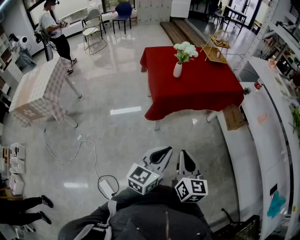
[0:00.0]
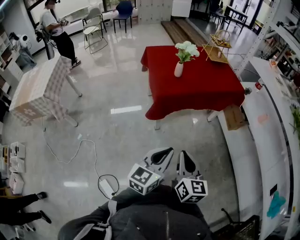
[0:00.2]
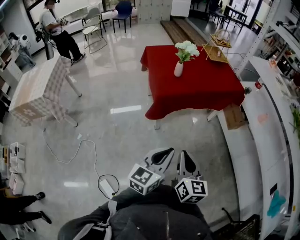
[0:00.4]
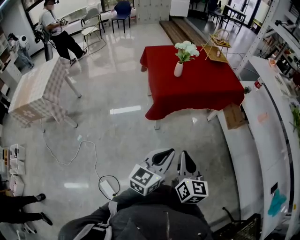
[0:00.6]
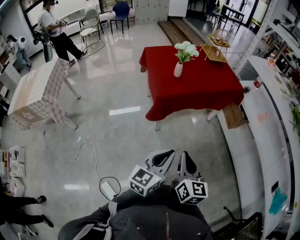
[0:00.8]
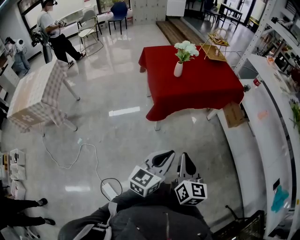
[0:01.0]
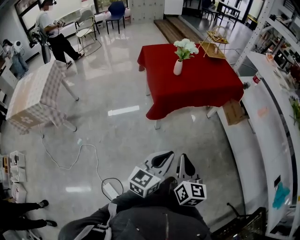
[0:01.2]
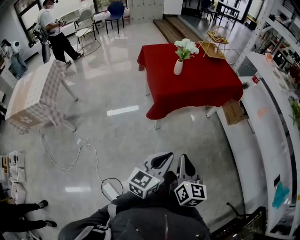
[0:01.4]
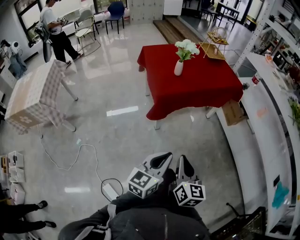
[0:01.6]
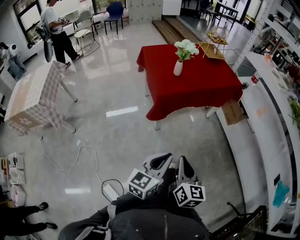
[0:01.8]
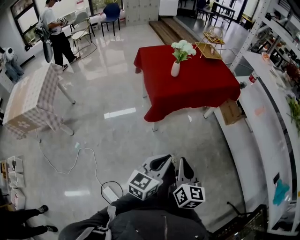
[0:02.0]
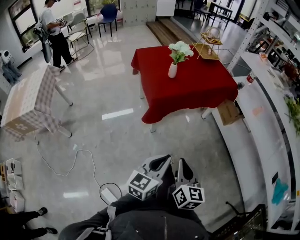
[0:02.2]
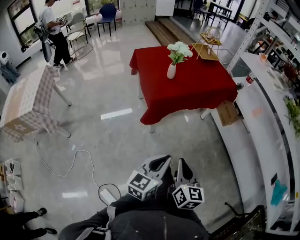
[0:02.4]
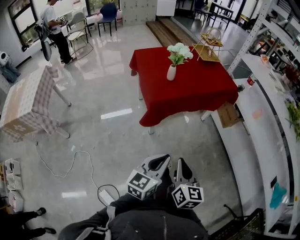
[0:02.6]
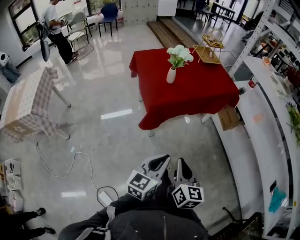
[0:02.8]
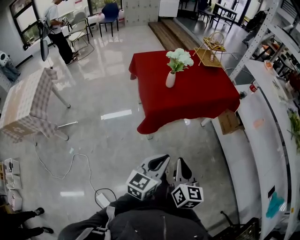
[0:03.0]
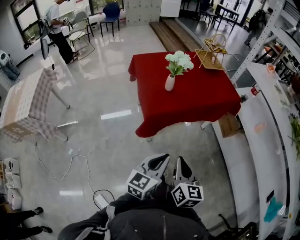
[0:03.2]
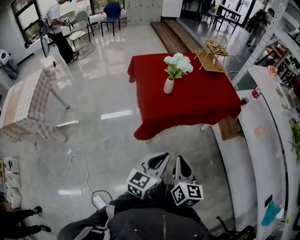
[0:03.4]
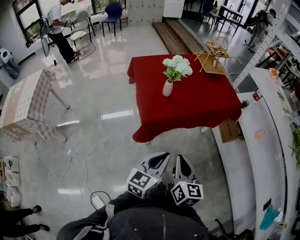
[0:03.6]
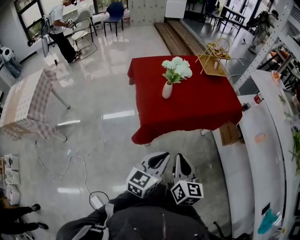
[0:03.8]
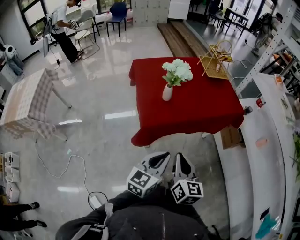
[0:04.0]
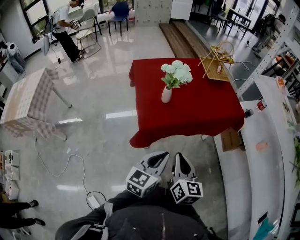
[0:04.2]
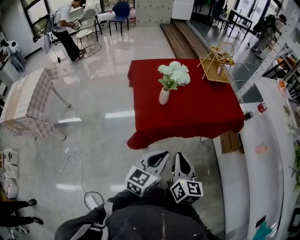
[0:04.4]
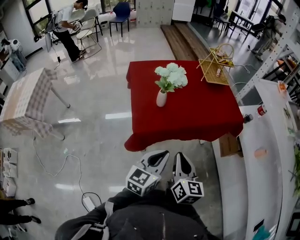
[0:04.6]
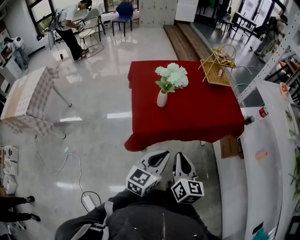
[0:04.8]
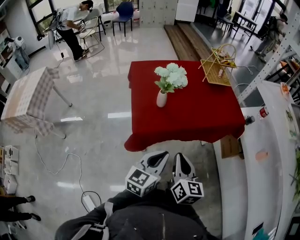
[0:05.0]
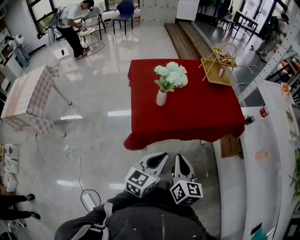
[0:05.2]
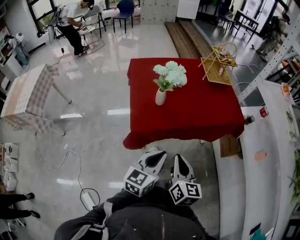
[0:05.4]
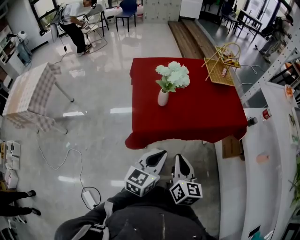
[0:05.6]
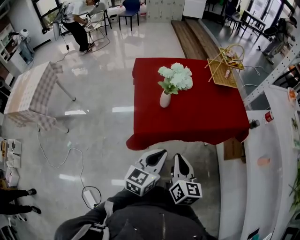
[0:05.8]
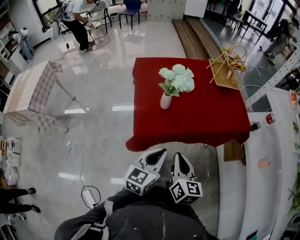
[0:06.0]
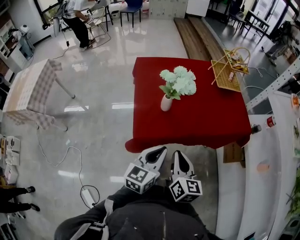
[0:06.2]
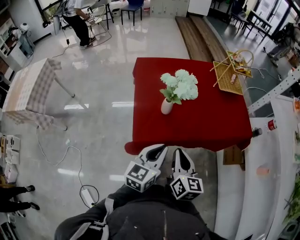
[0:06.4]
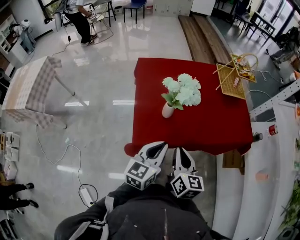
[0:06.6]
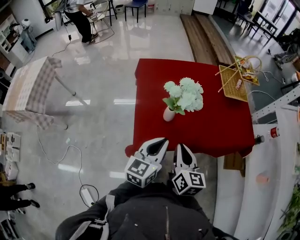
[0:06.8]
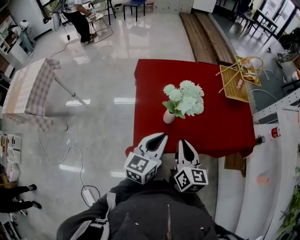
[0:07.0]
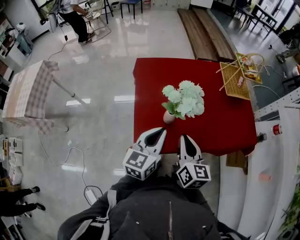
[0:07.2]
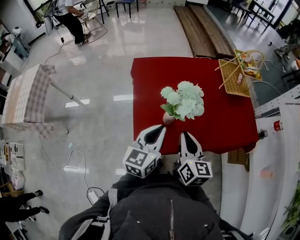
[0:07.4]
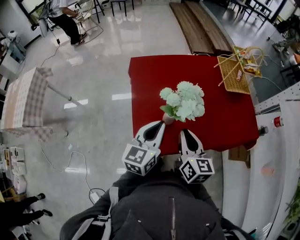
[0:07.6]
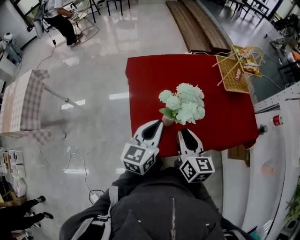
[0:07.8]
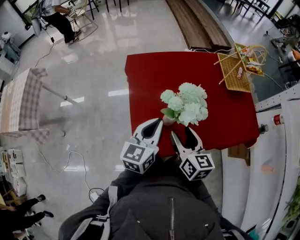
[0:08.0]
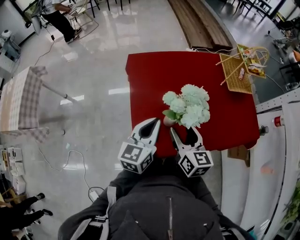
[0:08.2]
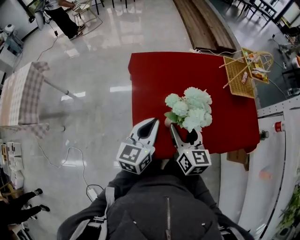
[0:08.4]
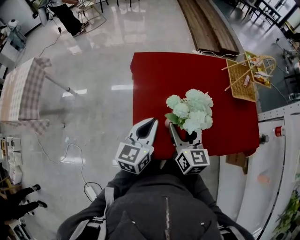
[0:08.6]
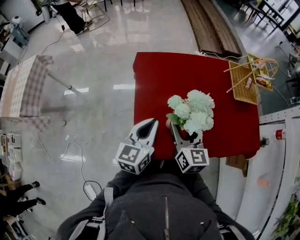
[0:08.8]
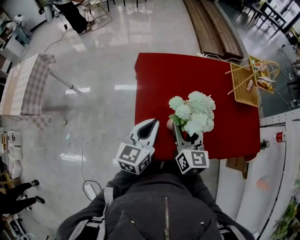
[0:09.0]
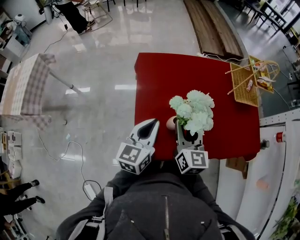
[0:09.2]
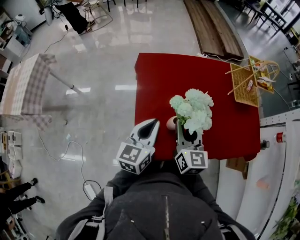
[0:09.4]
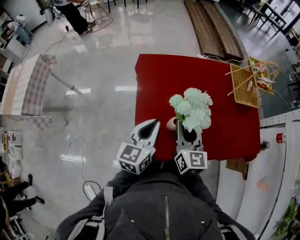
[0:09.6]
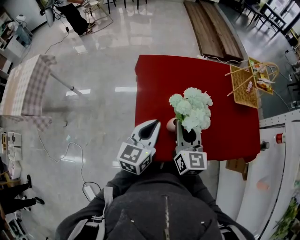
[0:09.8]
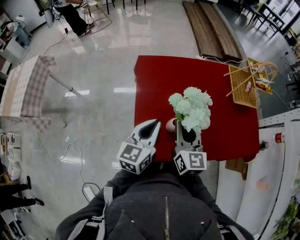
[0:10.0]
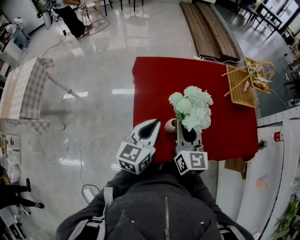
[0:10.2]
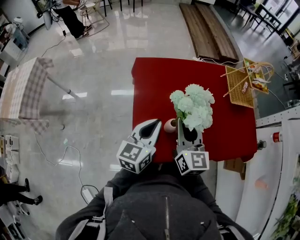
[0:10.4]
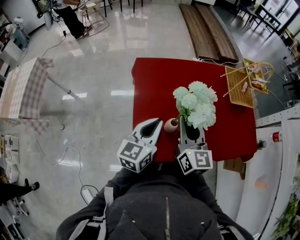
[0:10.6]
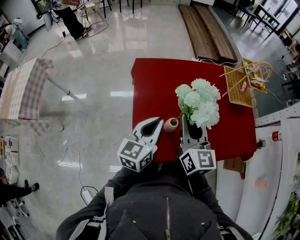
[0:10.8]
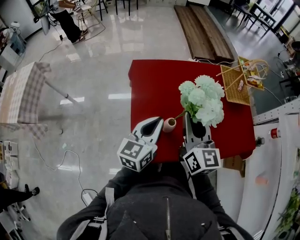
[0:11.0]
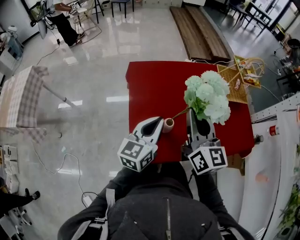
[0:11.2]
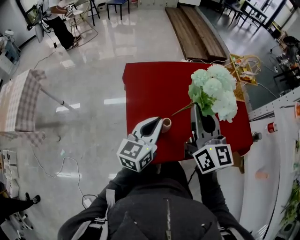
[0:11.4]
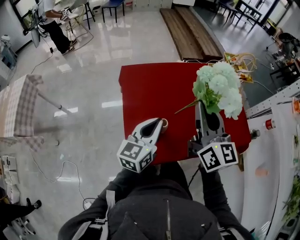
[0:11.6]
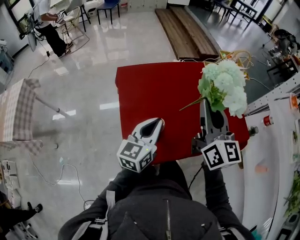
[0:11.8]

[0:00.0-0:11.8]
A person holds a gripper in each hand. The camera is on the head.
0:00.0 to 0:01.4: The grippers move only a little.
0:01.4 to 0:03.0: The grippers both shift forward by about 10 cm.
0:03.0 to 0:04.4: Both grippers travel together forward, approximately 20 cm.
0:04.4 to 0:06.0: Both grippers travel together forward, about 5 cm.
0:06.0 to 0:07.4: Both grippers move forward, roughly 20 cm.
0:07.4 to 0:08.8: The left gripper goes some 10 cm forward and to the left; the right gripper heads forward, covering roughly 10 cm, and opens up.
0:08.8 to 0:10.4: The right gripper closes.
0:10.4 to 0:11.8: The right gripper shifts some 15 cm upward and to the right. Meanwhile the left gripper moves roughly 5 cm.

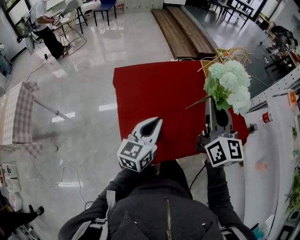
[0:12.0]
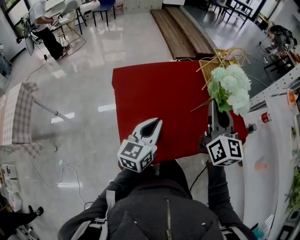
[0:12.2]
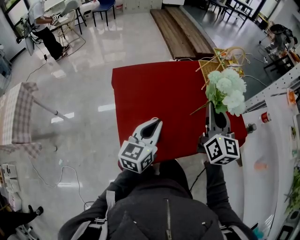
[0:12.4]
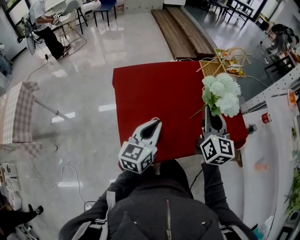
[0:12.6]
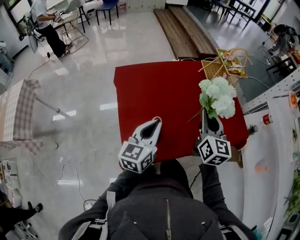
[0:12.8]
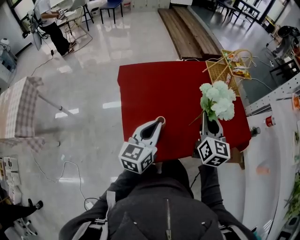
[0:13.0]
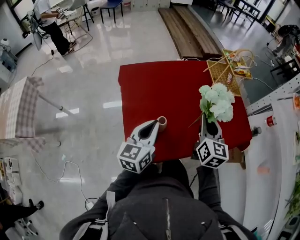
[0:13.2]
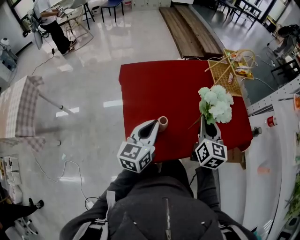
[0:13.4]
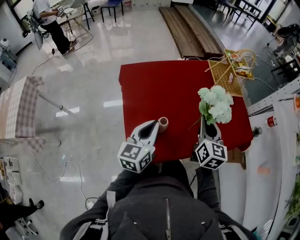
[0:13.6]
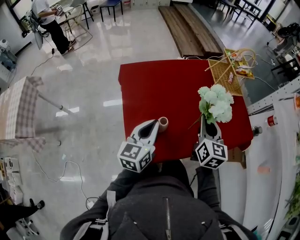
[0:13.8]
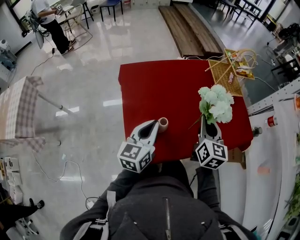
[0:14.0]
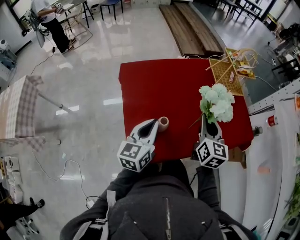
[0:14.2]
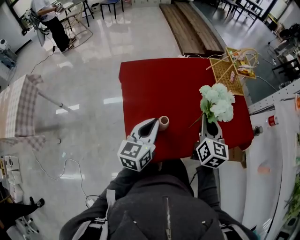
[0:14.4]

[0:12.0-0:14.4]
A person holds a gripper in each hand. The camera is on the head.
0:12.0 to 0:13.2: The right gripper heads downward, covering about 15 cm.
0:13.2 to 0:14.4: The grippers make only small movements.

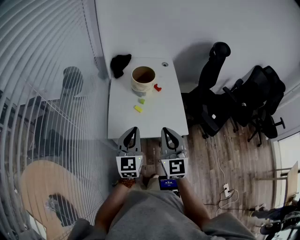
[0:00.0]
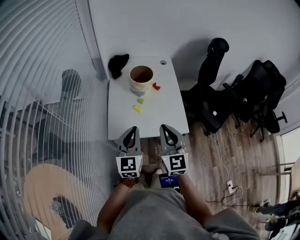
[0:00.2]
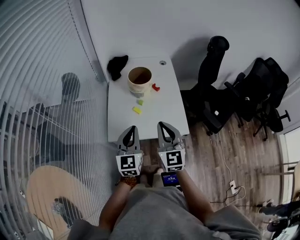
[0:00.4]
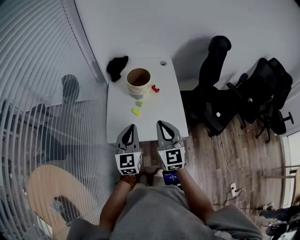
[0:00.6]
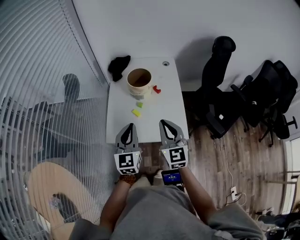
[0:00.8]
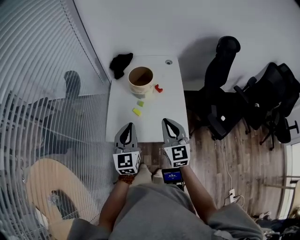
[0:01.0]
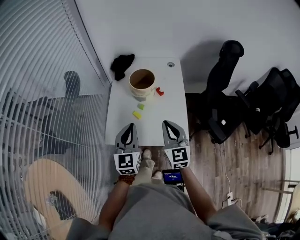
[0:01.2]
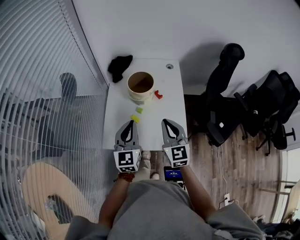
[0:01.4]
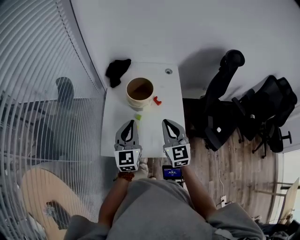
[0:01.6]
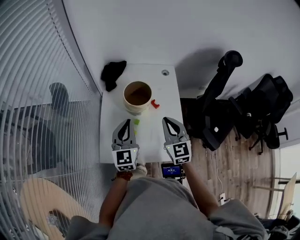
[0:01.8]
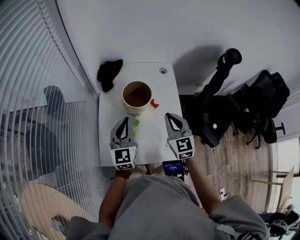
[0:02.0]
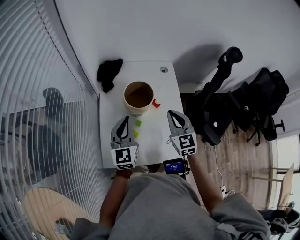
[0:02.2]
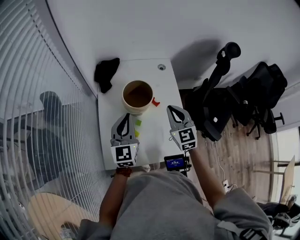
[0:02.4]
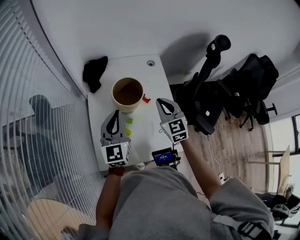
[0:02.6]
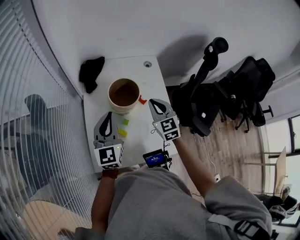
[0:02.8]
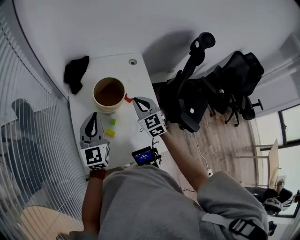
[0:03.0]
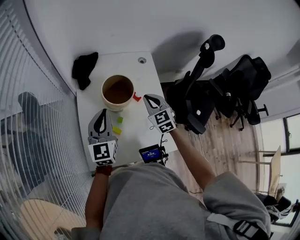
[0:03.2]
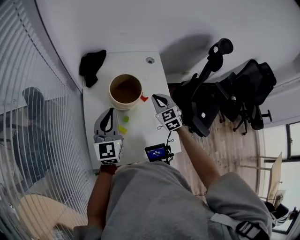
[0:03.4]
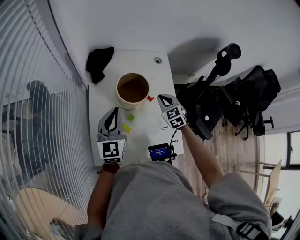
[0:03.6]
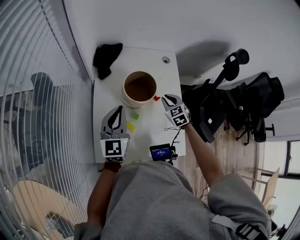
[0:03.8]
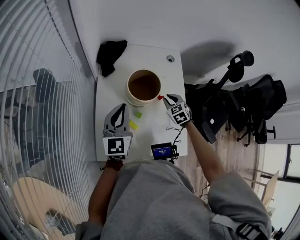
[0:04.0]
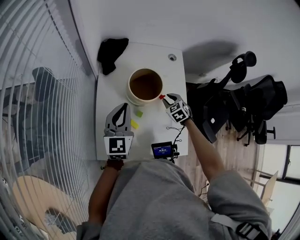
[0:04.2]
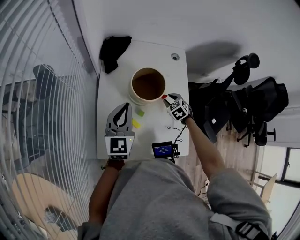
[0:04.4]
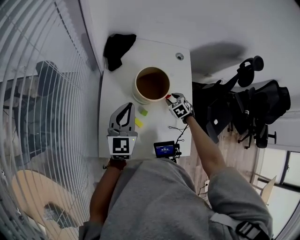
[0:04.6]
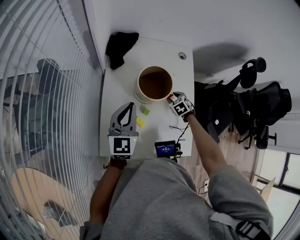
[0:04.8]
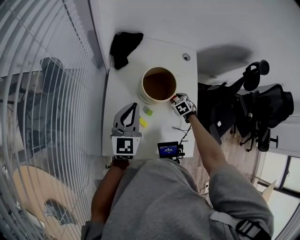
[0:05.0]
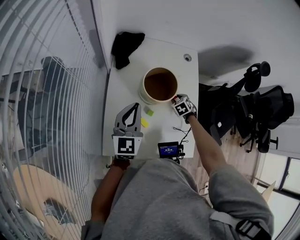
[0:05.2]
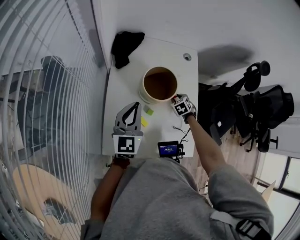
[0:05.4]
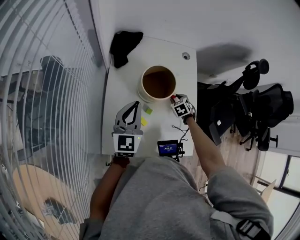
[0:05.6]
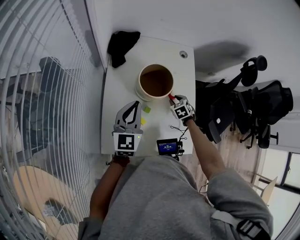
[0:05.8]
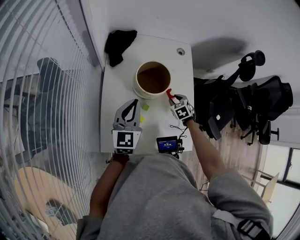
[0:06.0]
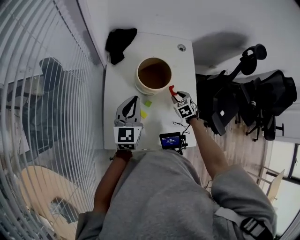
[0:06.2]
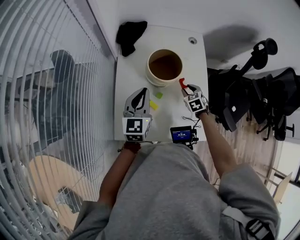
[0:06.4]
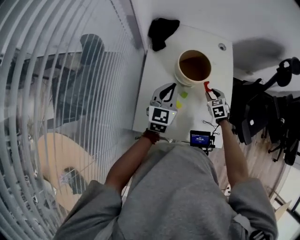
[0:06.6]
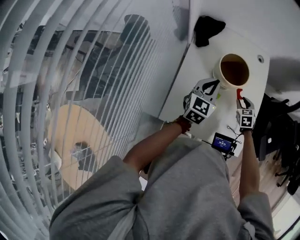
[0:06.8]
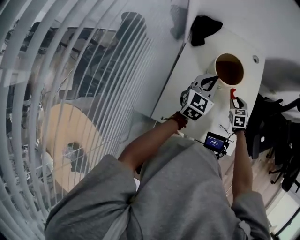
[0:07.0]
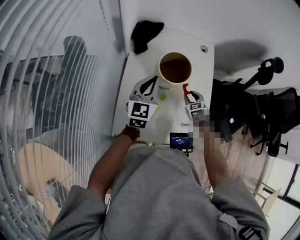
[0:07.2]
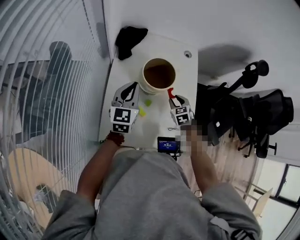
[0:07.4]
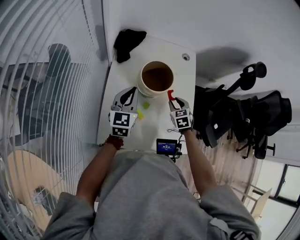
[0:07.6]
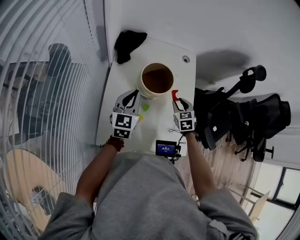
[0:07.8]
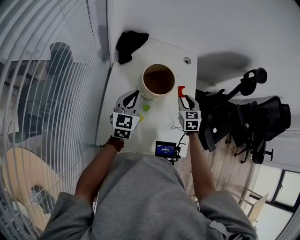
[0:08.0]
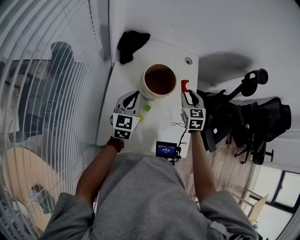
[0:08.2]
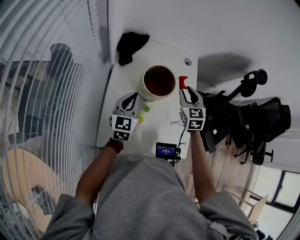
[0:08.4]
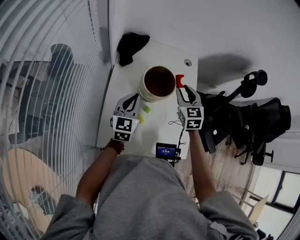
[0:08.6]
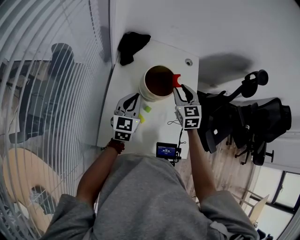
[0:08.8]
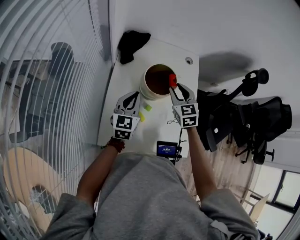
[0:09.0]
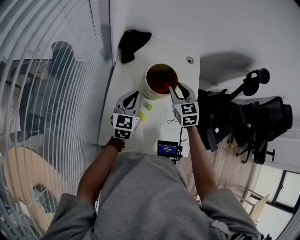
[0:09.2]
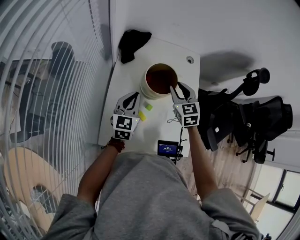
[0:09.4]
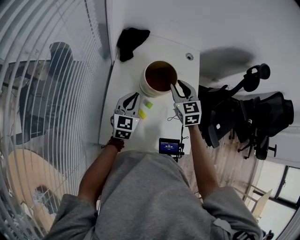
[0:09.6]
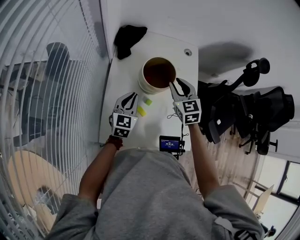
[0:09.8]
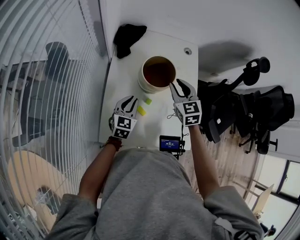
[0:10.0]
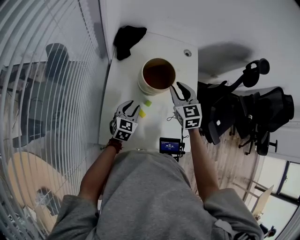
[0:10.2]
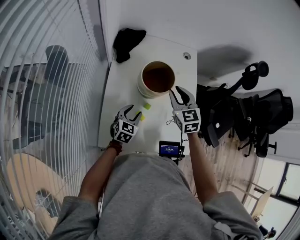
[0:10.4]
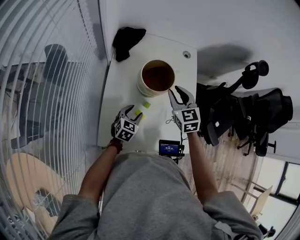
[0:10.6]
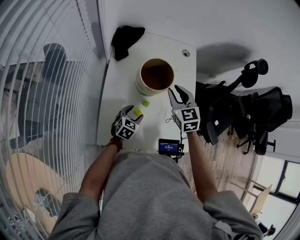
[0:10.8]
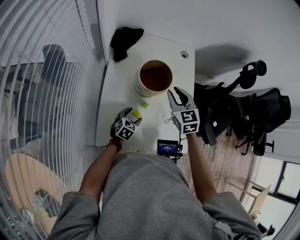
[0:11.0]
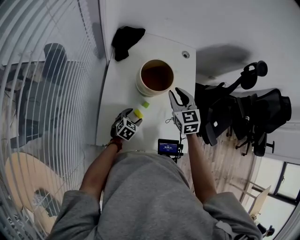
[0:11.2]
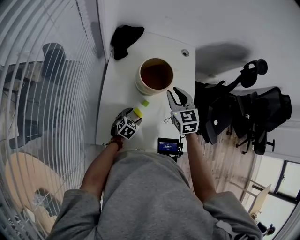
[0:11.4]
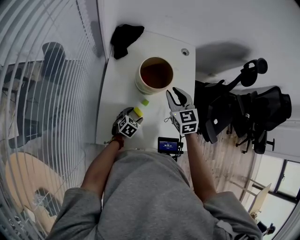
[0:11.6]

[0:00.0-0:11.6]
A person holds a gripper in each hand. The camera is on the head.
0:00.0 to 0:01.4: Both grippers move forward and to the right, approximately 15 cm.
0:01.4 to 0:02.8: The left gripper is displaced forward by roughly 15 cm. The right gripper shifts roughly 20 cm forward and downward.
0:02.8 to 0:04.4: The left gripper ends up about 5 cm from where it was, while the right gripper heads downward, covering about 20 cm, points its fingers about 40 degrees further downward, and opens its fingers.
0:05.8 to 0:07.2: The right gripper changes place by some 5 cm.
0:07.2 to 0:08.8: The right gripper shifts approximately 20 cm upward, and rotates some 20 degrees.
0:08.8 to 0:10.2: The left gripper shifts about 10 cm downward, and opens.
0:10.2 to 0:11.6: The left gripper shifts some 10 cm downward, swivels about 20 degrees, and opens up.
